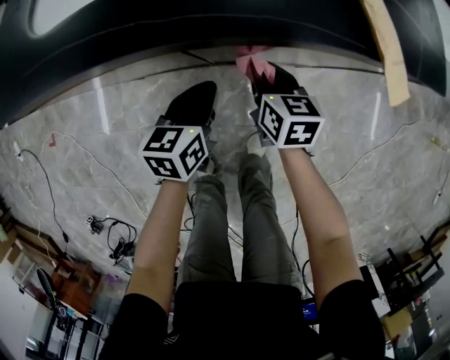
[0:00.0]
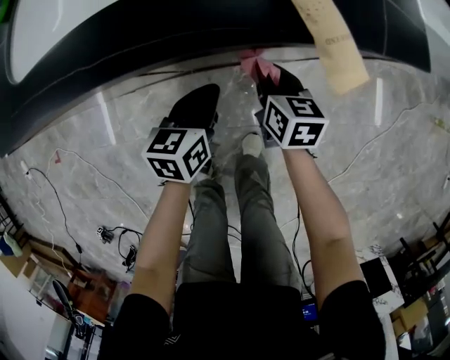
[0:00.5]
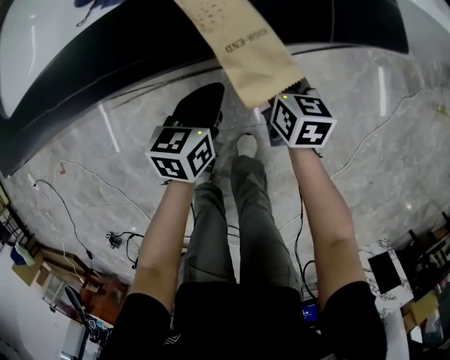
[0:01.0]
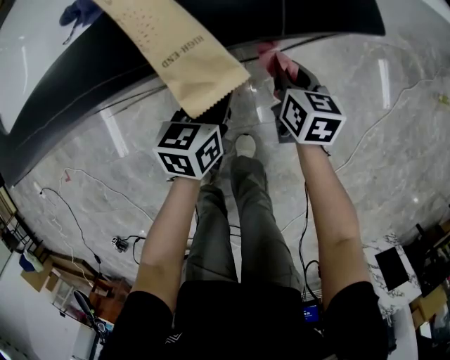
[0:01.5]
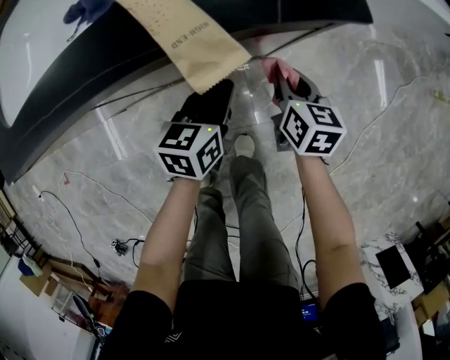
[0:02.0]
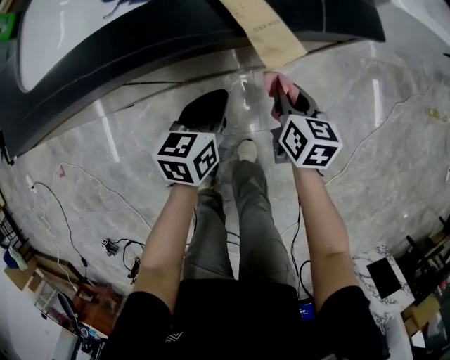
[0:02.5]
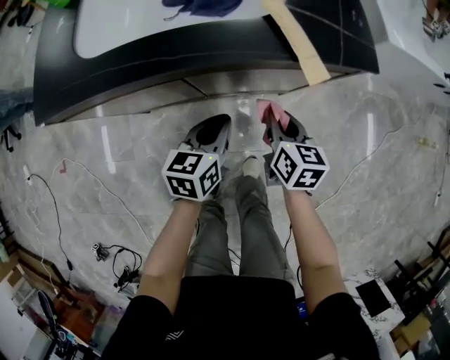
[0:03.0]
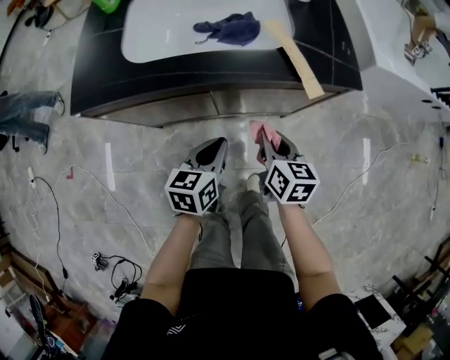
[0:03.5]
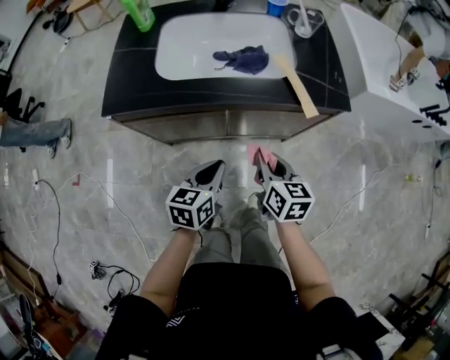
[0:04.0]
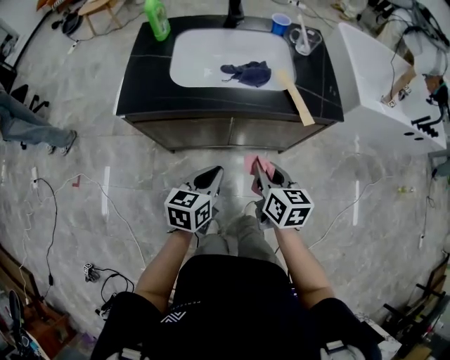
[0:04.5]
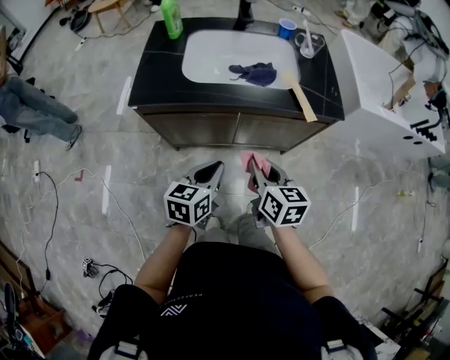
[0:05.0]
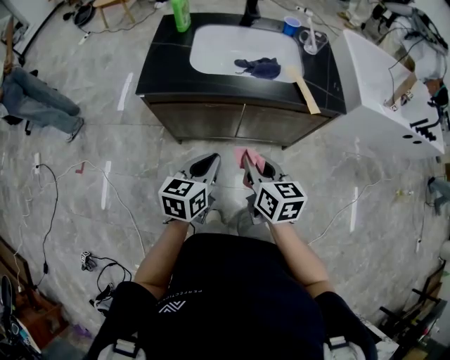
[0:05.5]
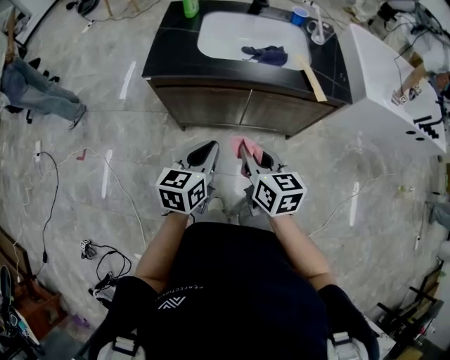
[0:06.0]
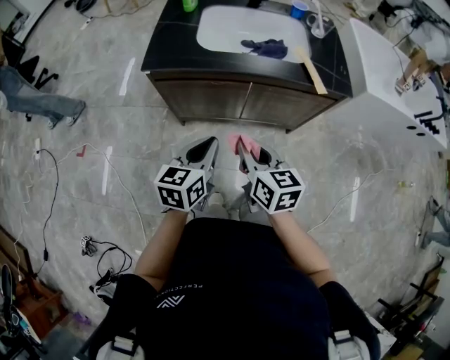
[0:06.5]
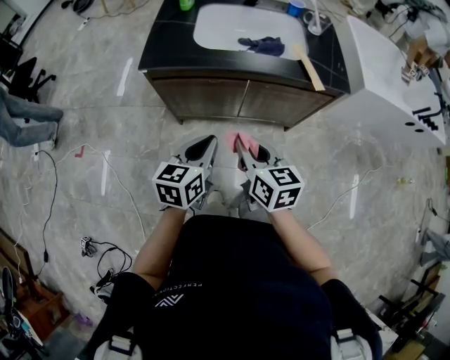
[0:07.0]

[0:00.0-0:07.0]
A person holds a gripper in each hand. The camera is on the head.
0:00.0 to 0:02.0: The two grippers go approximately 20 cm to the right.
0:02.0 to 0:03.5: The grippers both shift to the left, upward and backward by roughly 25 cm.
0:03.5 to 0:05.0: Both grippers travel together upward, backward and to the left, some 20 cm.
0:05.0 to 0:07.0: The left gripper goes roughly 5 cm backward. The right gripper heads to the left and backward, covering some 10 cm.

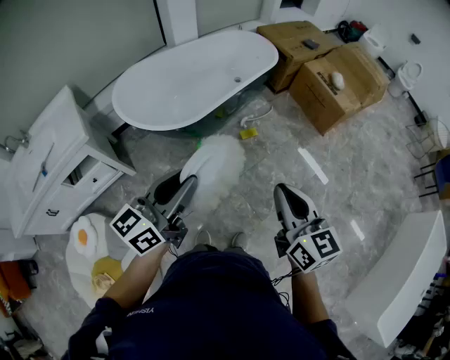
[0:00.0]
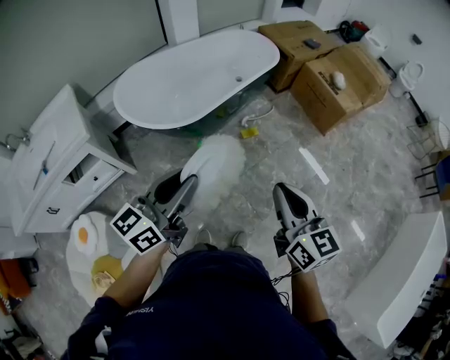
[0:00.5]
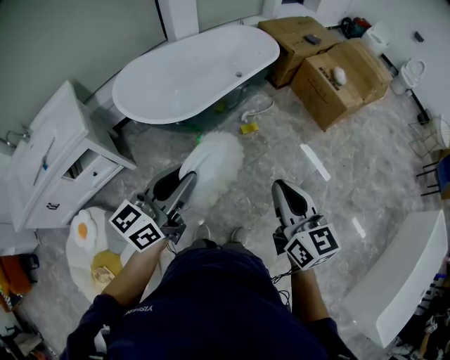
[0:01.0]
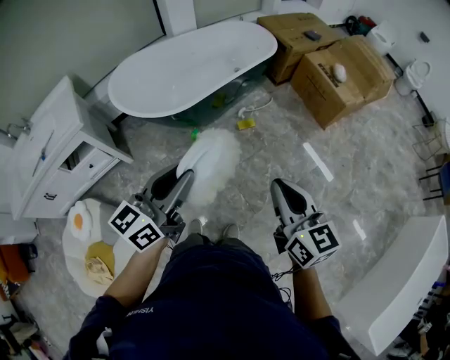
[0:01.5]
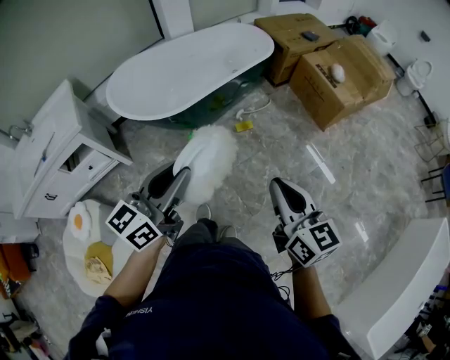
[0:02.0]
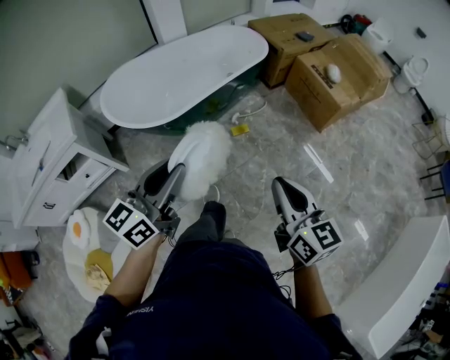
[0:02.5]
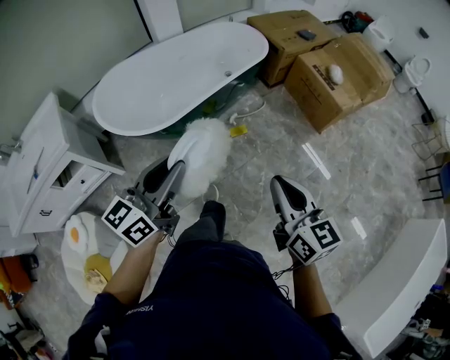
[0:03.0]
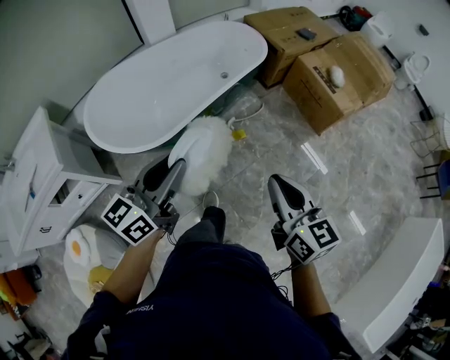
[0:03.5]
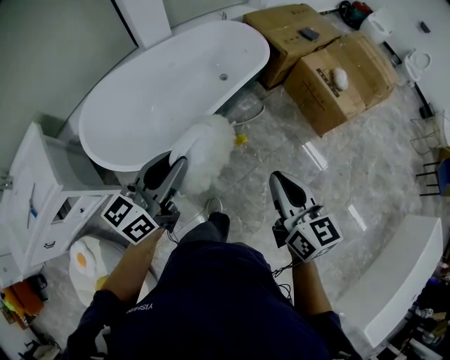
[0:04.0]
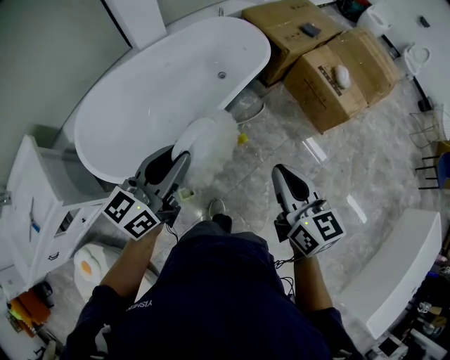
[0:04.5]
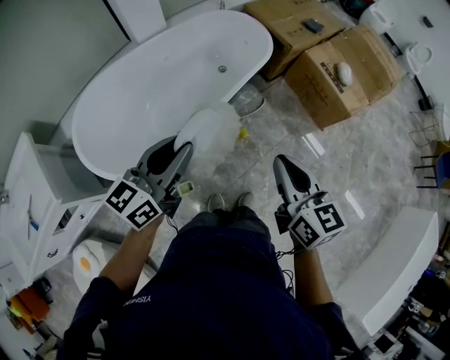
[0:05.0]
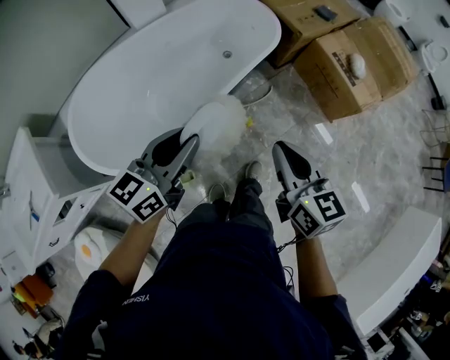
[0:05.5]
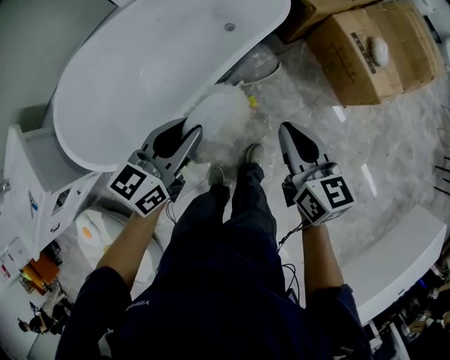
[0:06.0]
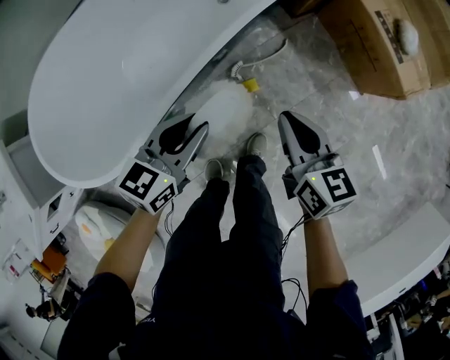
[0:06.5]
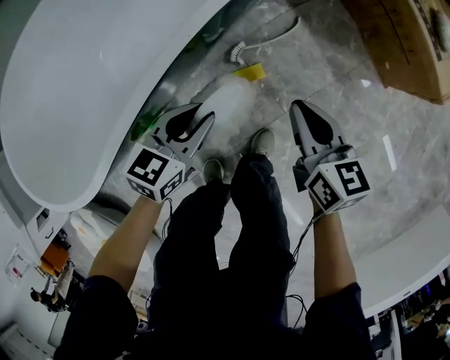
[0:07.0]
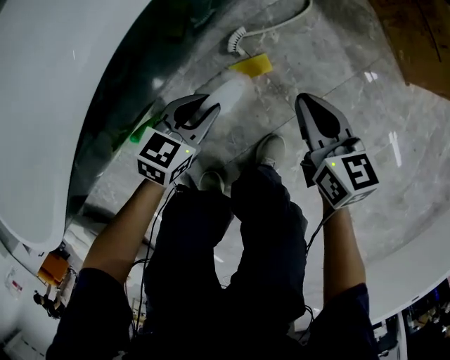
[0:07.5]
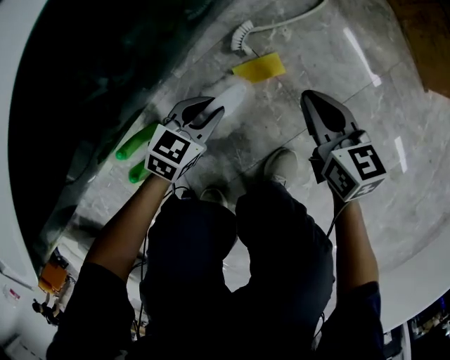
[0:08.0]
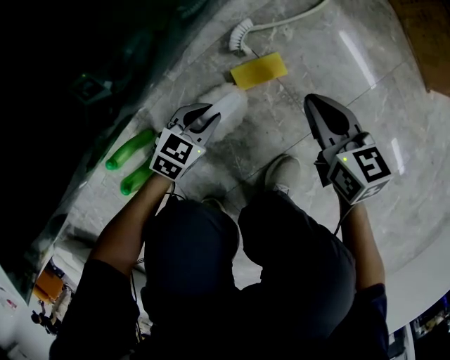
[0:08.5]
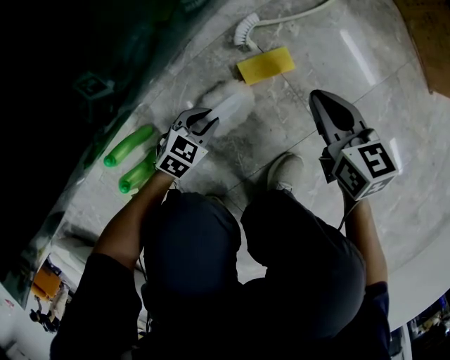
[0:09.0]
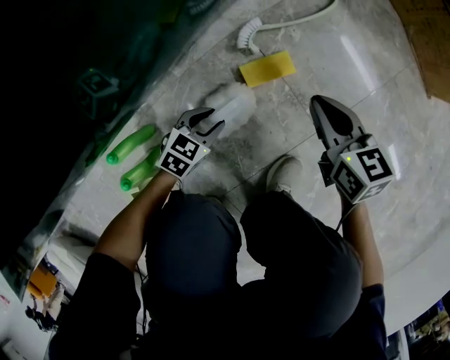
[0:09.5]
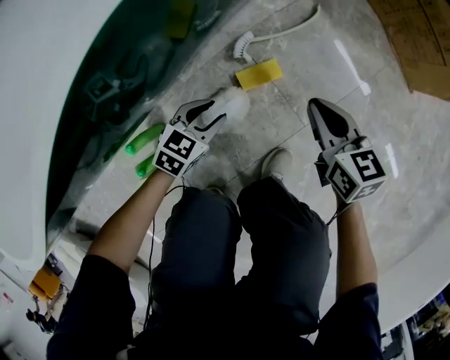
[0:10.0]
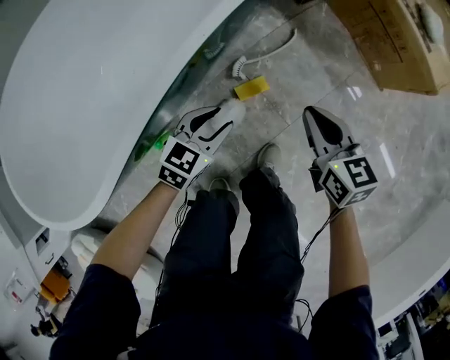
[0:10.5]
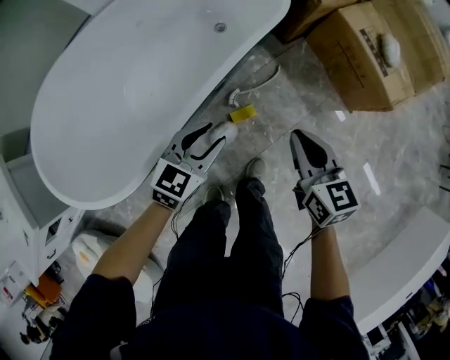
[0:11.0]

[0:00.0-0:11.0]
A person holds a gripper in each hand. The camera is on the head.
0:00.0 to 0:02.0: The two grippers go some 10 cm to the right.
0:02.0 to 0:03.5: Both grippers move forward, some 20 cm.
0:03.5 to 0:05.5: Both grippers move forward, approximately 20 cm.
0:05.5 to 0:07.5: The grippers both shift downward by approximately 60 cm. The left gripper points its fingers some 30 degrees further downward.
0:07.5 to 0:09.0: The left gripper moves downward, roughly 25 cm. The right gripper shifts some 15 cm downward.
0:09.0 to 0:11.0: Both grippers travel together upward, roughly 60 cm. The left gripper rotates roughly 20 degrees.

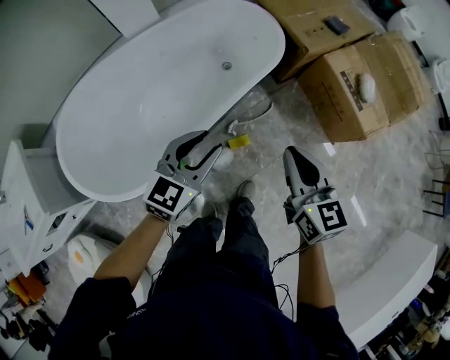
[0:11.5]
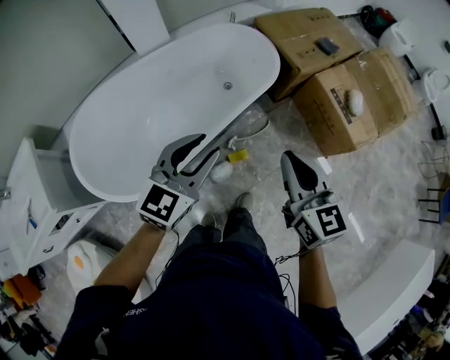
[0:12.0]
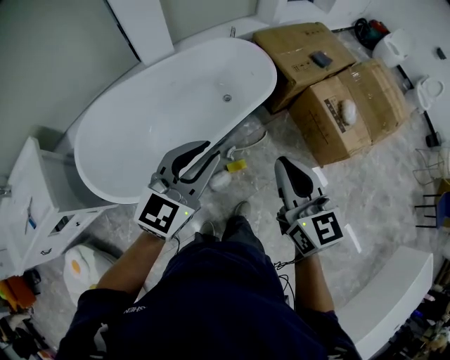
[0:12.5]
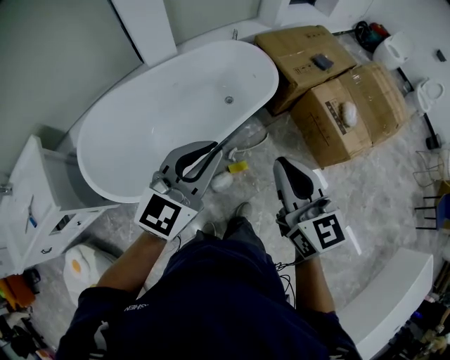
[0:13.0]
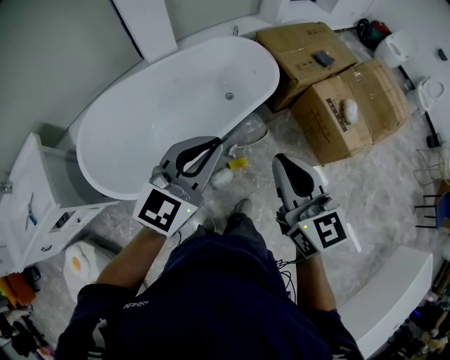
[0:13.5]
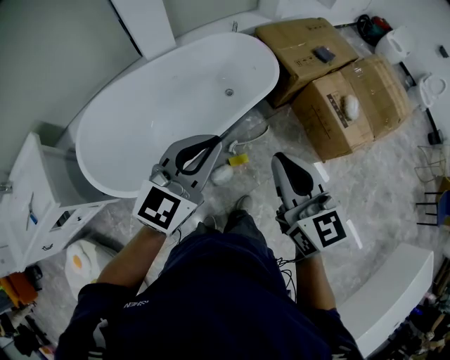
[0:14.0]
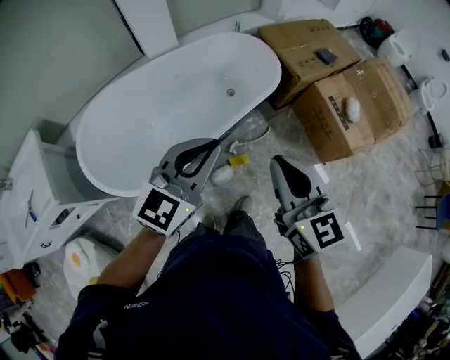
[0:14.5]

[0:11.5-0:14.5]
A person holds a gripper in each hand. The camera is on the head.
0:11.5 to 0:13.0: The right gripper moves upward and backward, roughly 20 cm. Meanwhile the left gripper shifts roughly 20 cm upward, and closes.
0:13.0 to 0:14.5: The grippers move only a little.

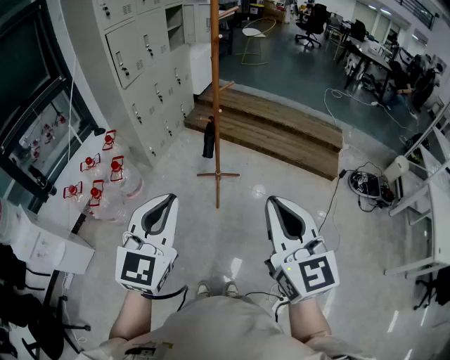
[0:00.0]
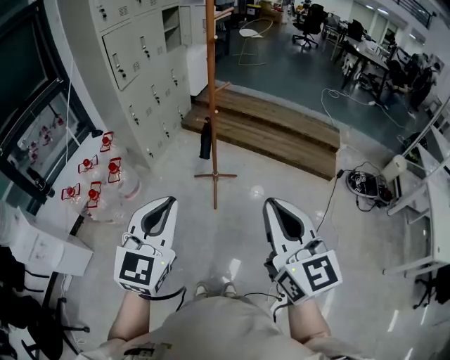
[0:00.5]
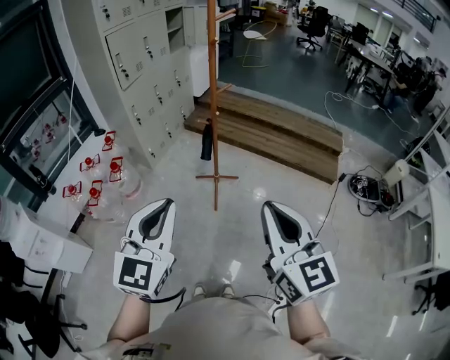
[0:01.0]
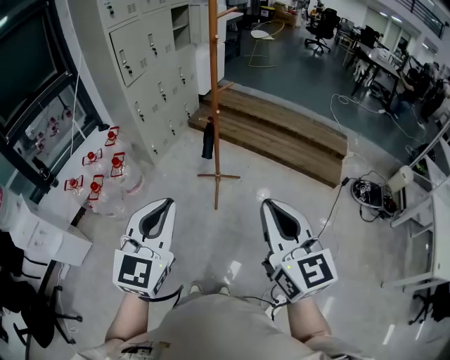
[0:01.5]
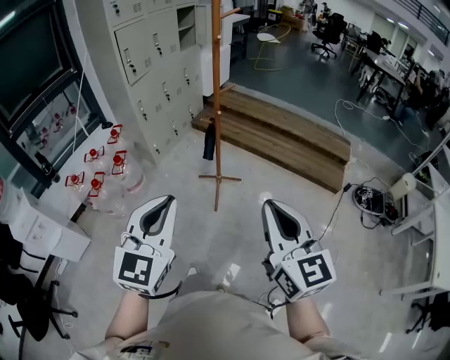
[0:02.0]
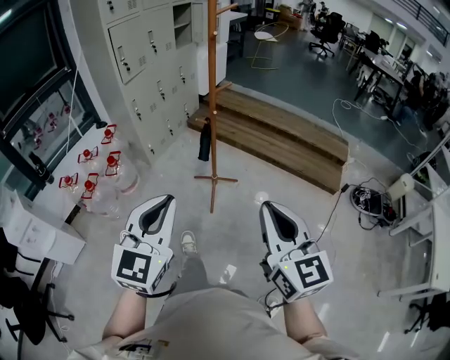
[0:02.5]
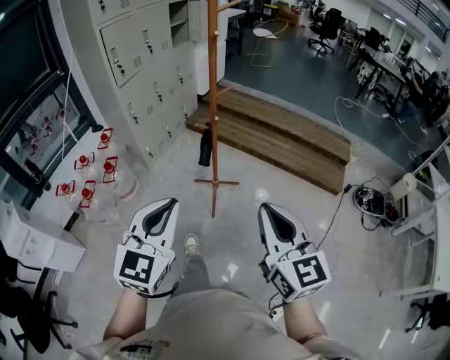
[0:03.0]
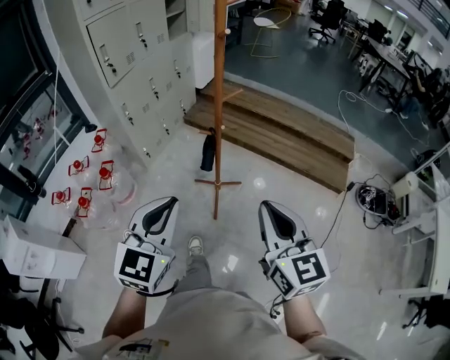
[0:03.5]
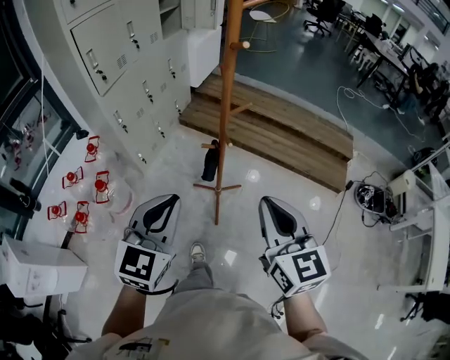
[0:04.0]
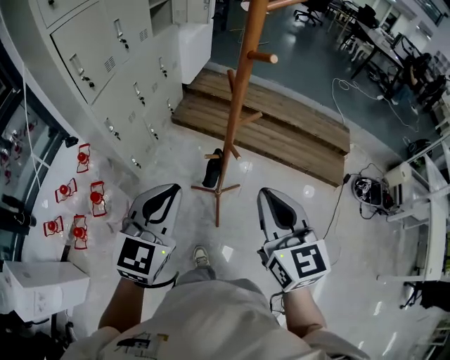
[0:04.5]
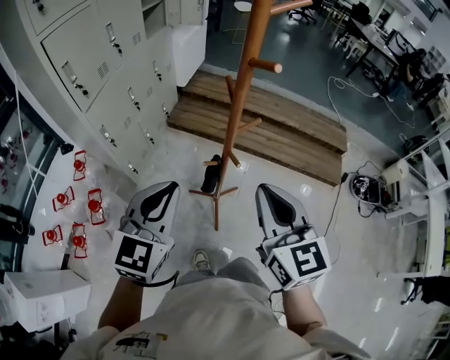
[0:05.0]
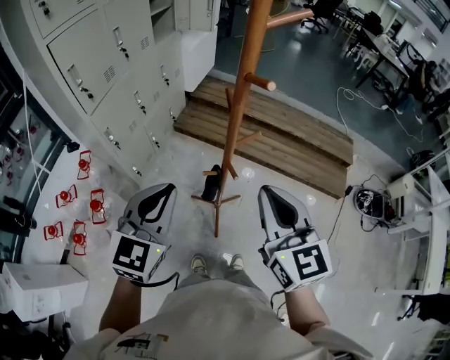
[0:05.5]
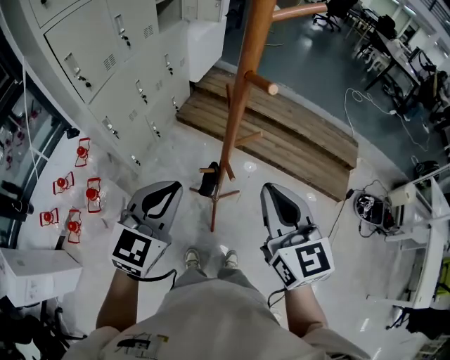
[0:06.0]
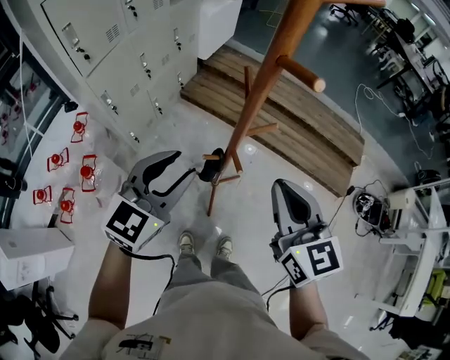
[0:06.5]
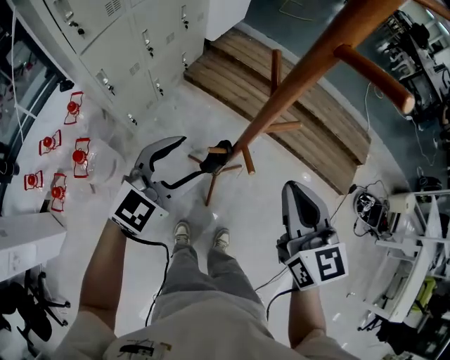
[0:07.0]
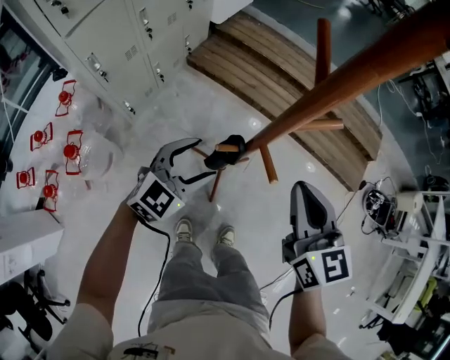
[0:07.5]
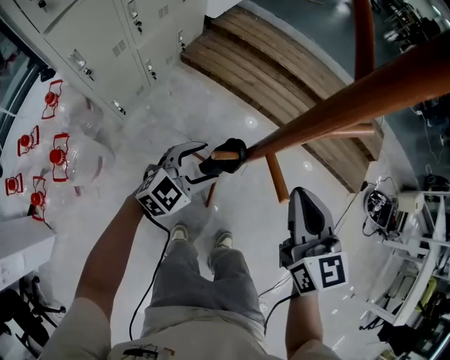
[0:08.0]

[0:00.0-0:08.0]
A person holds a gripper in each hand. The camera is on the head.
0:00.0 to 0:02.0: Both grippers travel together to the right, about 5 cm.
0:02.0 to 0:04.0: Both grippers travel together forward, approximately 35 cm.
0:04.0 to 0:06.0: Both grippers move forward, some 20 cm.
0:06.0 to 0:08.0: Both grippers travel together downward, about 35 cm. The left gripper swivels about 30 degrees, and opens up.
